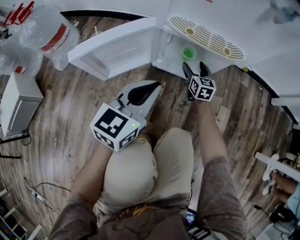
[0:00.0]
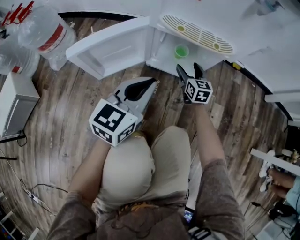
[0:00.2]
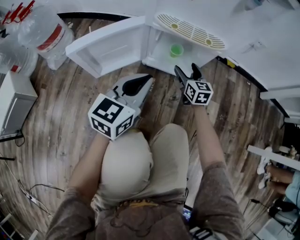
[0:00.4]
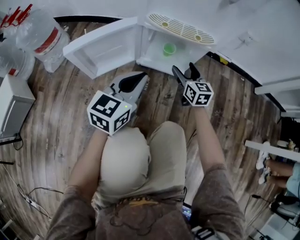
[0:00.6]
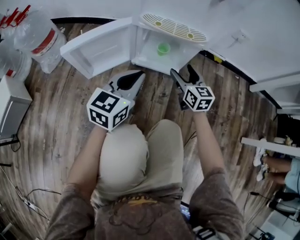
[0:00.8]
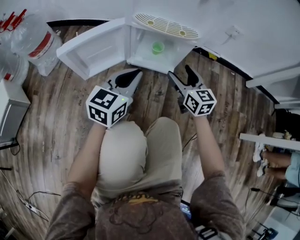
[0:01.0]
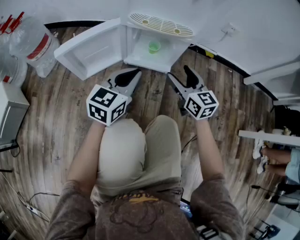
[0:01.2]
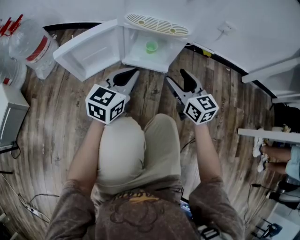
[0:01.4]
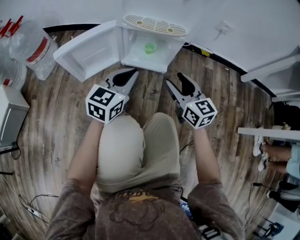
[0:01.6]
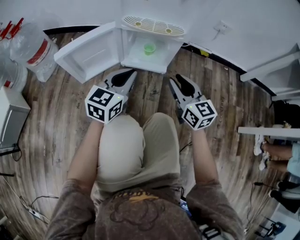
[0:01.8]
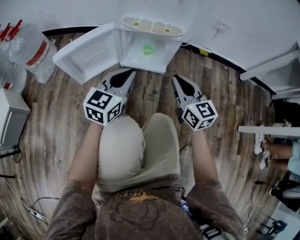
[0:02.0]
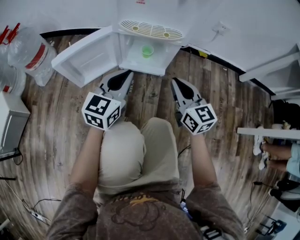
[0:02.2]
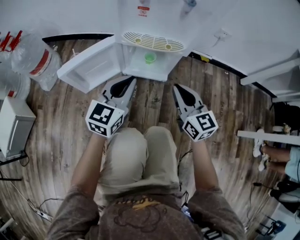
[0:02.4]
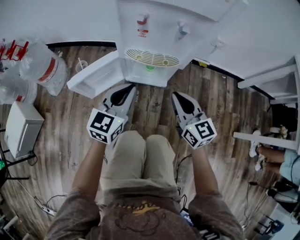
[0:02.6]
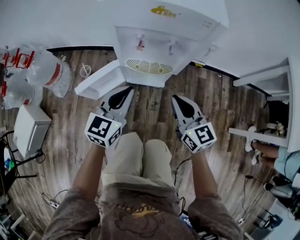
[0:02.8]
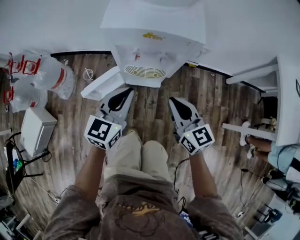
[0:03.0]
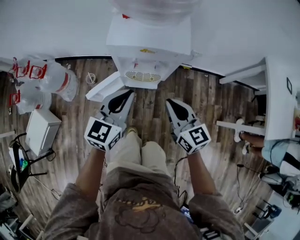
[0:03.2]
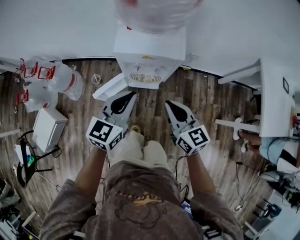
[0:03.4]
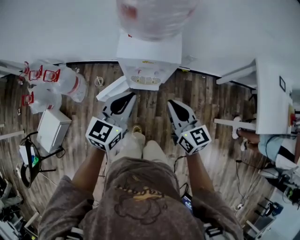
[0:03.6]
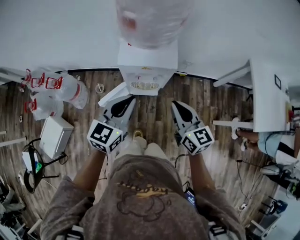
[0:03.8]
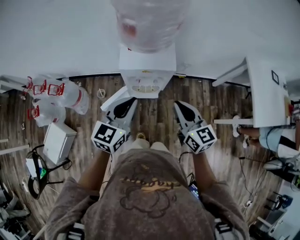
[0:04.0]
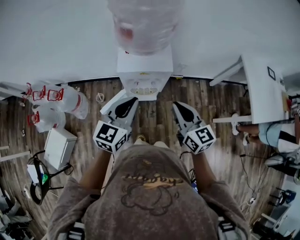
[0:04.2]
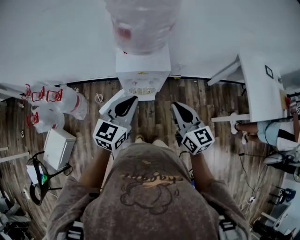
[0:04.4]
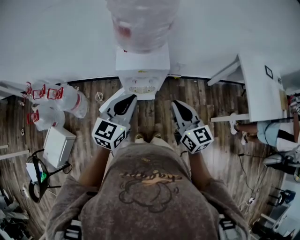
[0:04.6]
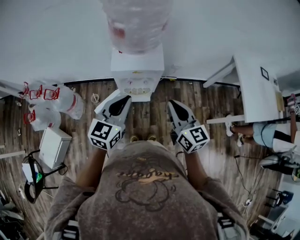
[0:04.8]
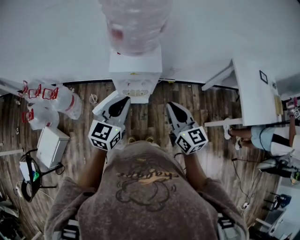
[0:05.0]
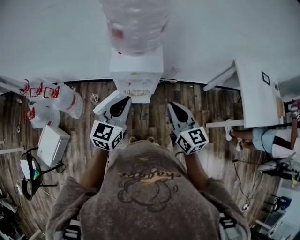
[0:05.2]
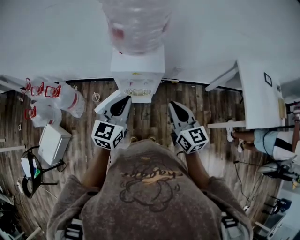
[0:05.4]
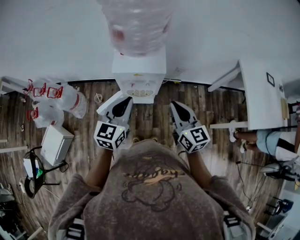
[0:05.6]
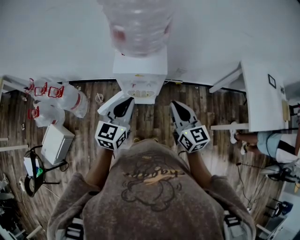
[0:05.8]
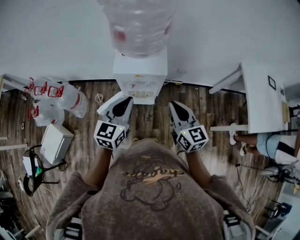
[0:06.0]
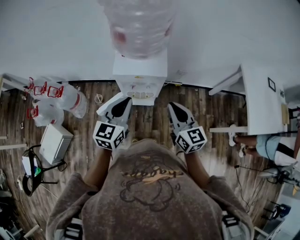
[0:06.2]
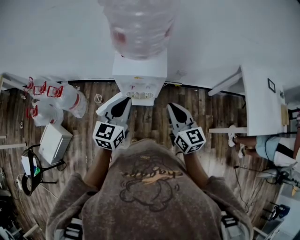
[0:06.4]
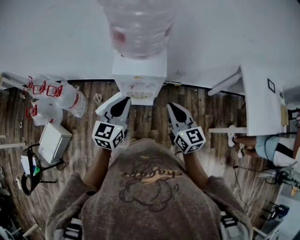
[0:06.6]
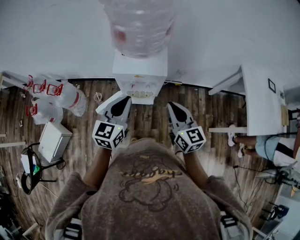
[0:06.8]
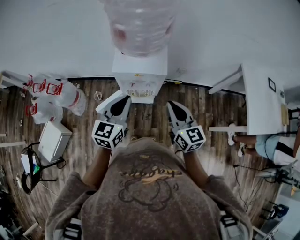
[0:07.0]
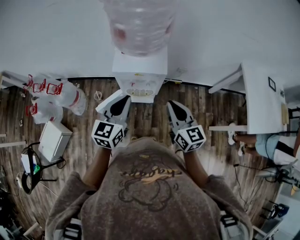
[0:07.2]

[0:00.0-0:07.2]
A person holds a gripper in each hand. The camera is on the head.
0:00.0 to 0:01.4: The right gripper is displaced upward and backward by about 30 cm; the left gripper shifts about 5 cm to the right.
0:01.4 to 0:02.8: Both grippers move upward, some 25 cm. The right gripper closes.
0:02.8 to 0:04.4: The grippers both shift upward by about 40 cm.
0:04.4 to 0:07.2: The grippers stay close to where they were, moving slightly.

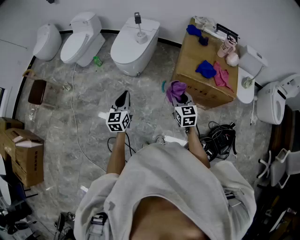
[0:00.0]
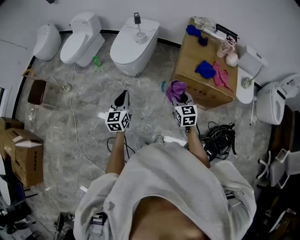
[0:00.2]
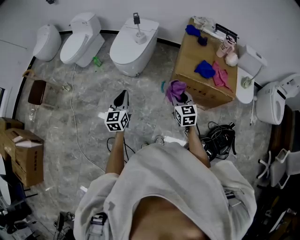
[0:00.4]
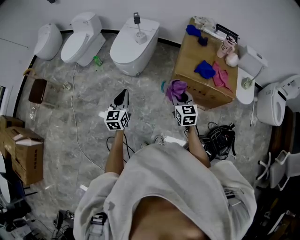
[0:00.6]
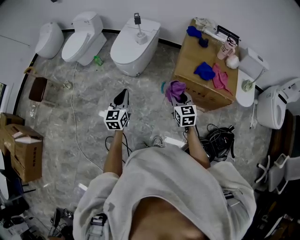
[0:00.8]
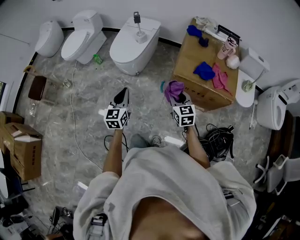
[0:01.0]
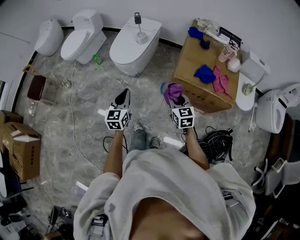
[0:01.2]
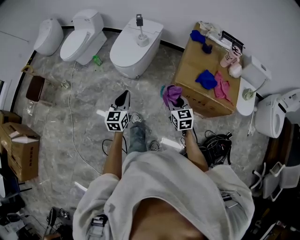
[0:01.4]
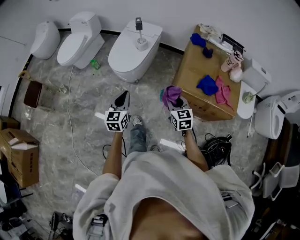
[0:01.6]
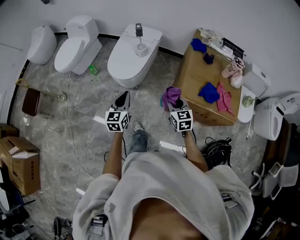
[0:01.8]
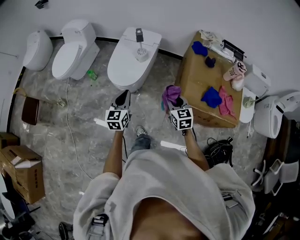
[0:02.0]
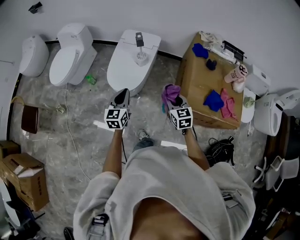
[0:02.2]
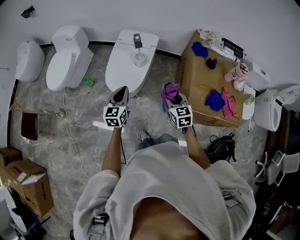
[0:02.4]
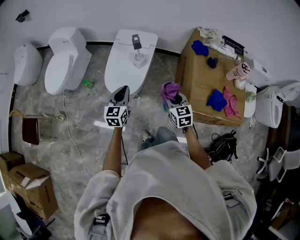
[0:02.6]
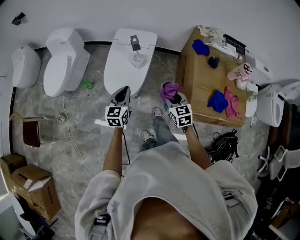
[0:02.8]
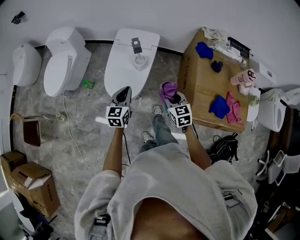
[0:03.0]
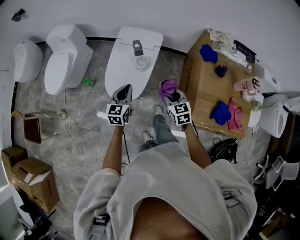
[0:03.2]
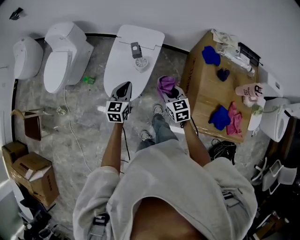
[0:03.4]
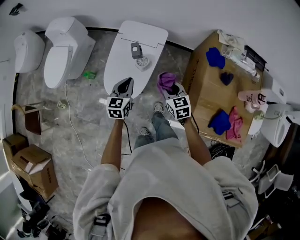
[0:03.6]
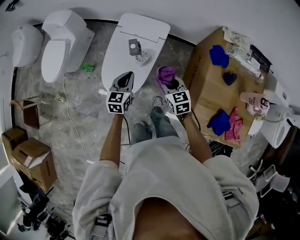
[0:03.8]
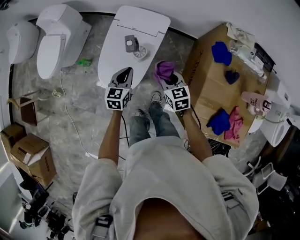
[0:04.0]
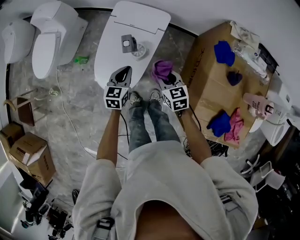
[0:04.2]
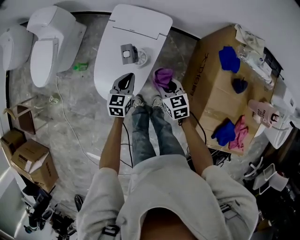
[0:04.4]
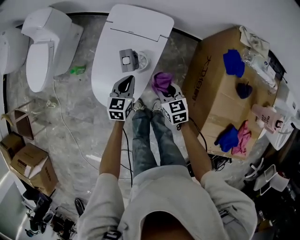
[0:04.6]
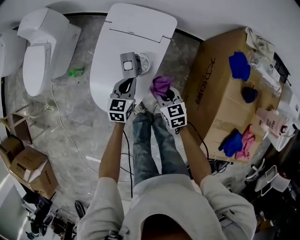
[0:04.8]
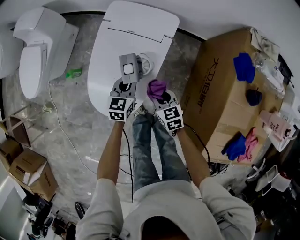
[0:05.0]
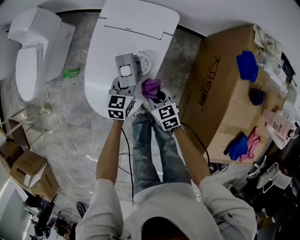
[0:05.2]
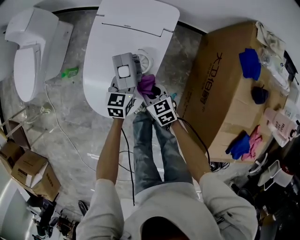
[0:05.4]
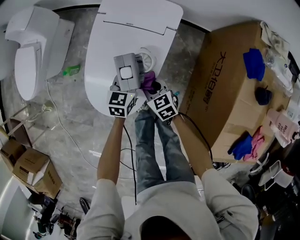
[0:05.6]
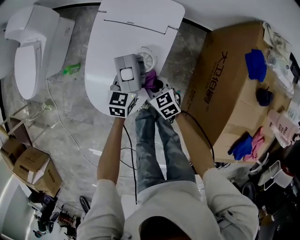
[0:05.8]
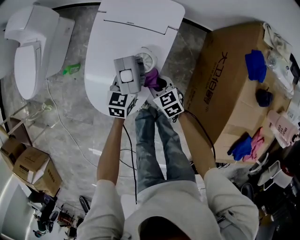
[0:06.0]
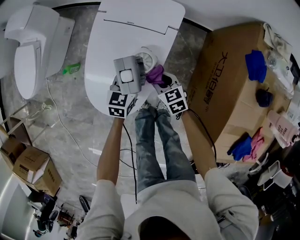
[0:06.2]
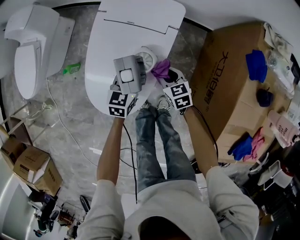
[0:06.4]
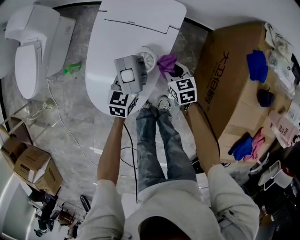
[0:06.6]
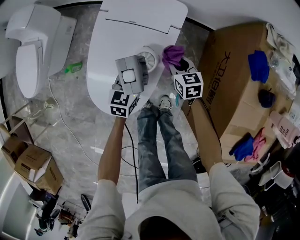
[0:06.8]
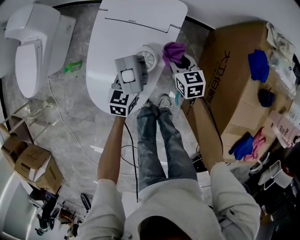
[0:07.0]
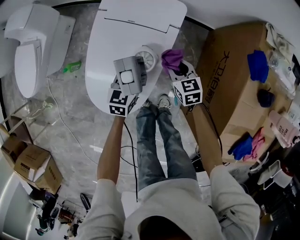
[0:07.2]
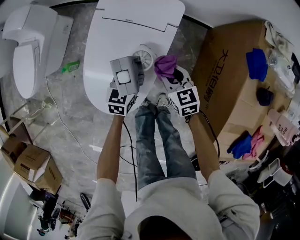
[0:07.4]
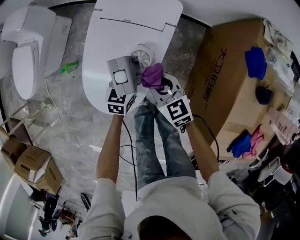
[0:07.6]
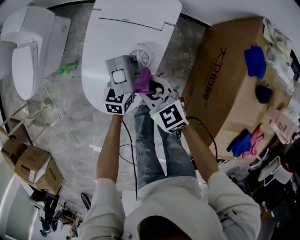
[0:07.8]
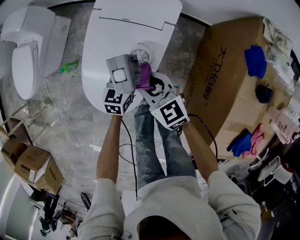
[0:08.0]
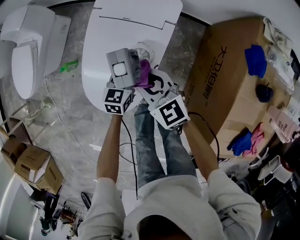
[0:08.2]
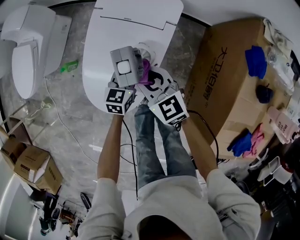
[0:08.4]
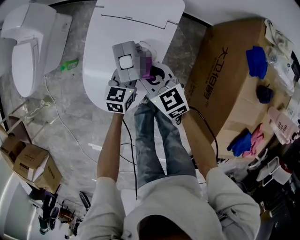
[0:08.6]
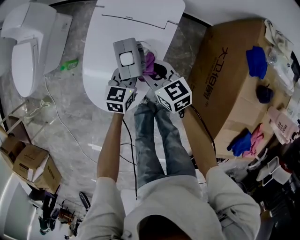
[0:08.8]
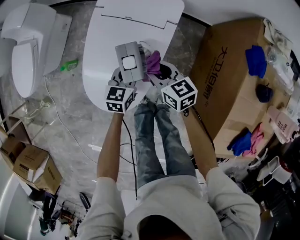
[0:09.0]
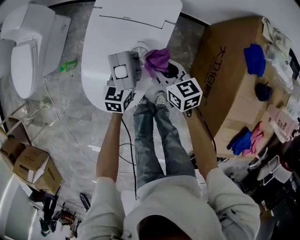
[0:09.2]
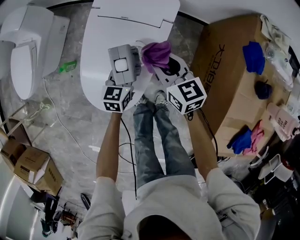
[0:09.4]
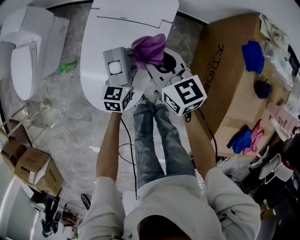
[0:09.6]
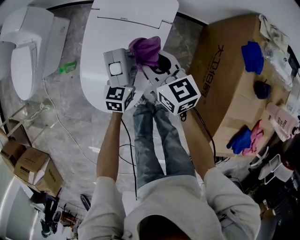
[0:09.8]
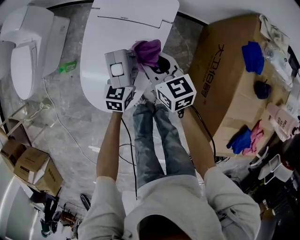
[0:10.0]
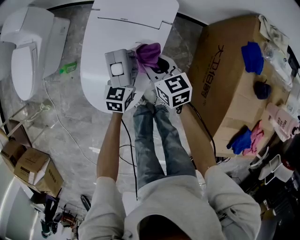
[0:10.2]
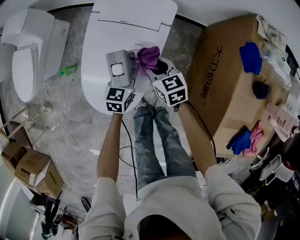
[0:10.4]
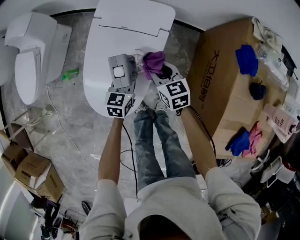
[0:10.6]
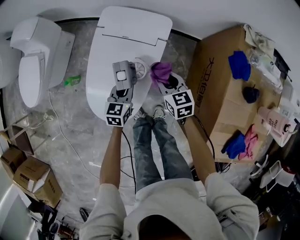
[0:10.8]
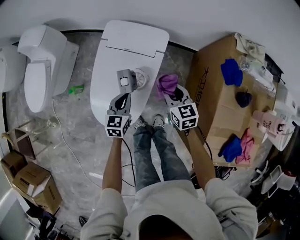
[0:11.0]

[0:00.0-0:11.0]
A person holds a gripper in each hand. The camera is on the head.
0:00.0 to 0:01.6: Both grippers travel together forward, approximately 10 cm.
0:01.6 to 0:03.2: Both grippers travel together forward, approximately 35 cm.
0:03.2 to 0:04.8: Both grippers travel together downward and forward, approximately 25 cm.
0:04.8 to 0:06.2: The left gripper travels downward by some 5 cm; the right gripper goes roughly 10 cm downward.
0:06.2 to 0:07.8: The right gripper shifts some 15 cm upward.
0:07.8 to 0:09.4: The right gripper travels to the right and forward by approximately 10 cm.
0:09.4 to 0:11.0: The left gripper shifts roughly 5 cm upward. Meanwhile the right gripper swings up and down, approximately 10 cm each way, with 2 reversals.

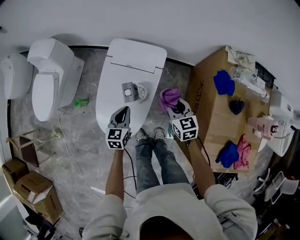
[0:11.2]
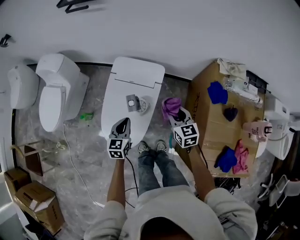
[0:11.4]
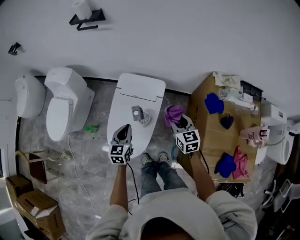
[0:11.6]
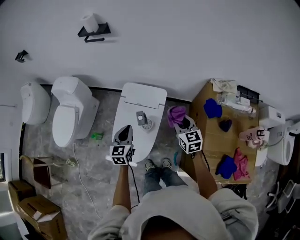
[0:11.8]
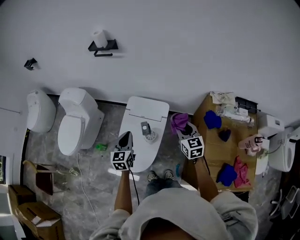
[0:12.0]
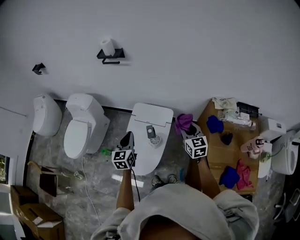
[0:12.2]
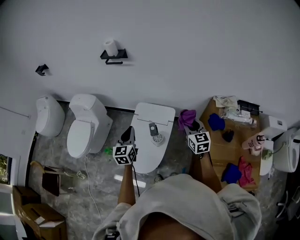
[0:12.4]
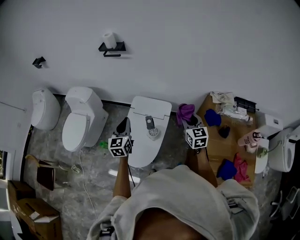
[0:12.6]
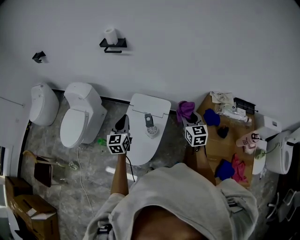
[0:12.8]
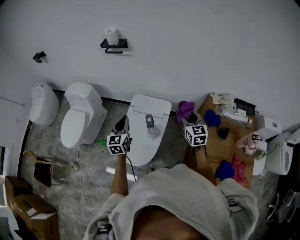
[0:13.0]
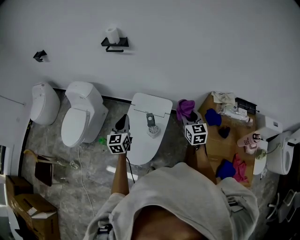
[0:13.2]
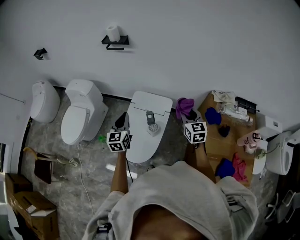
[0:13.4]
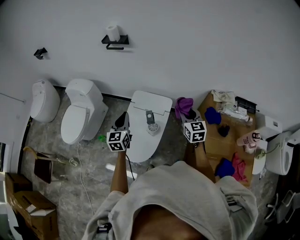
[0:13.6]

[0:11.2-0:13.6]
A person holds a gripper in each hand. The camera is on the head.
0:11.2 to 0:12.4: Both grippers move upward, roughly 25 cm. The left gripper changes its angle by approximately 20 degrees.
0:12.4 to 0:13.6: The grippers move only a little.

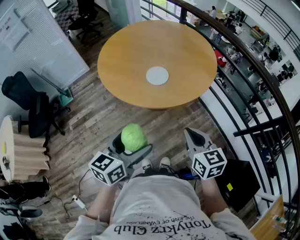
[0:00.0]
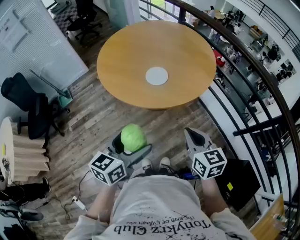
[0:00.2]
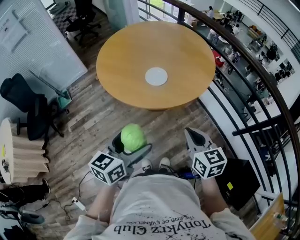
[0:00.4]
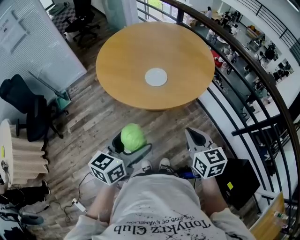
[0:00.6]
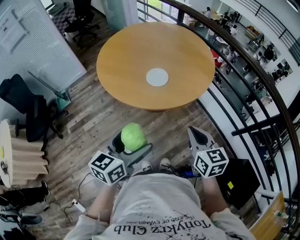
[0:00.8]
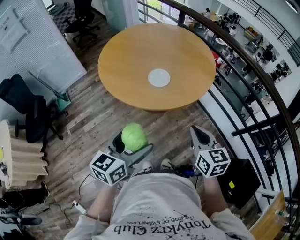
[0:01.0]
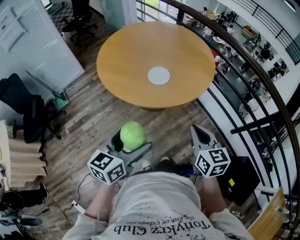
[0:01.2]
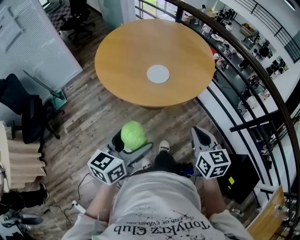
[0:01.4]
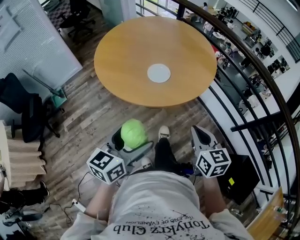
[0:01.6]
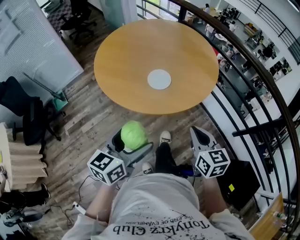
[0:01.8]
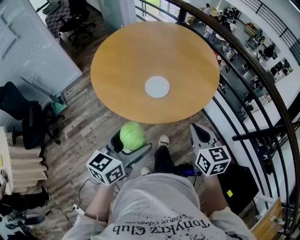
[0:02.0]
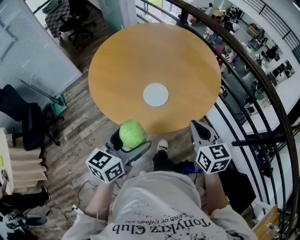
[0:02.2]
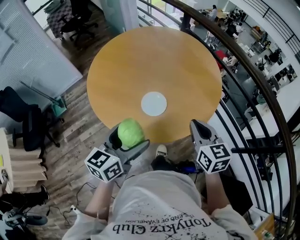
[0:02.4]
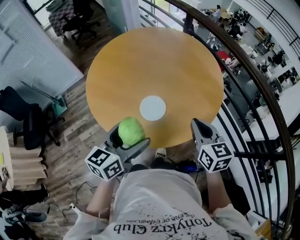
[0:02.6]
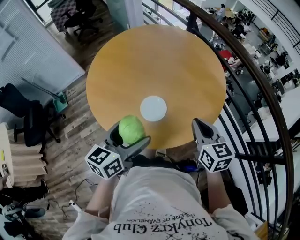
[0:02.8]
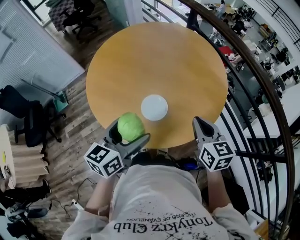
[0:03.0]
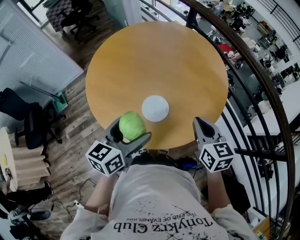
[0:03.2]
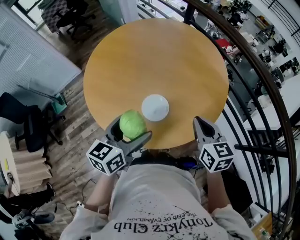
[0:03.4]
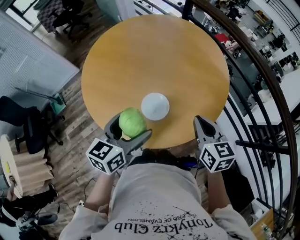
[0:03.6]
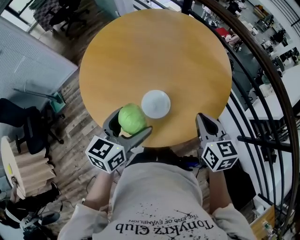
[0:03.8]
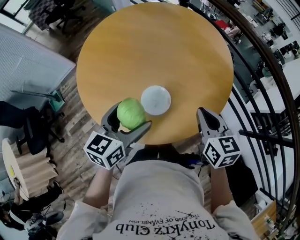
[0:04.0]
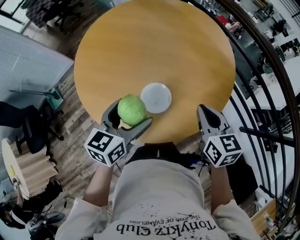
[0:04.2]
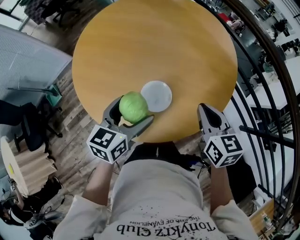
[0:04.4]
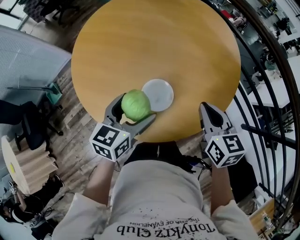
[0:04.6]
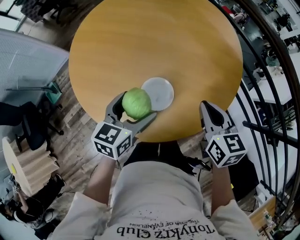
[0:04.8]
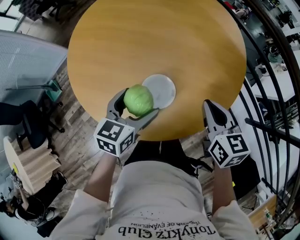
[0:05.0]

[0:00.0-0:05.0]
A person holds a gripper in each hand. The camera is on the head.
0:00.0 to 0:01.6: The grippers move only a little.
0:01.6 to 0:03.4: Both grippers travel together forward, approximately 30 cm.
0:03.4 to 0:05.0: The right gripper goes roughly 10 cm downward and forward; the left gripper moves downward and forward, approximately 15 cm.
